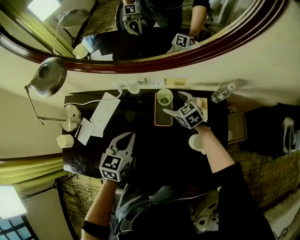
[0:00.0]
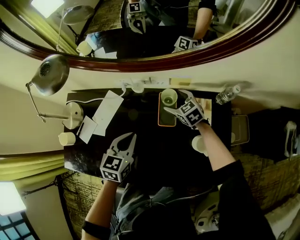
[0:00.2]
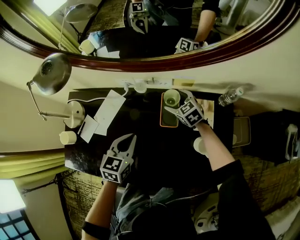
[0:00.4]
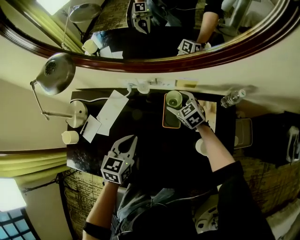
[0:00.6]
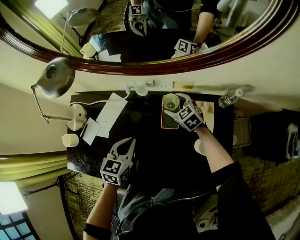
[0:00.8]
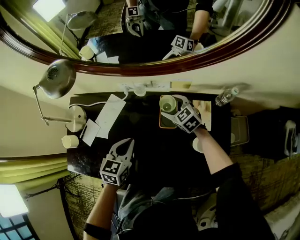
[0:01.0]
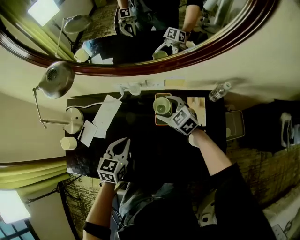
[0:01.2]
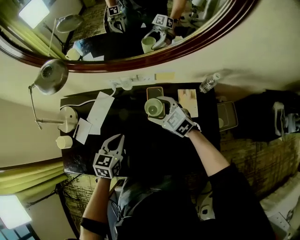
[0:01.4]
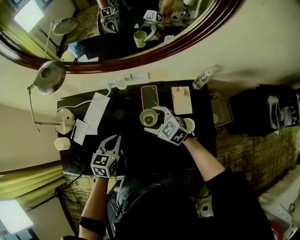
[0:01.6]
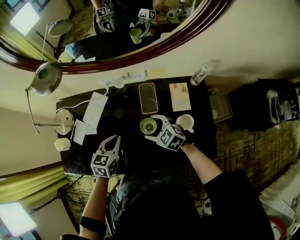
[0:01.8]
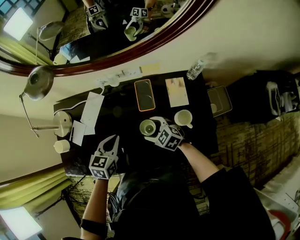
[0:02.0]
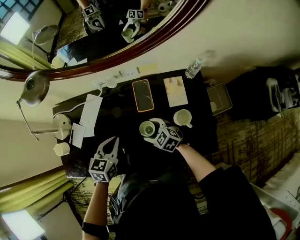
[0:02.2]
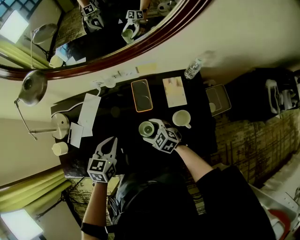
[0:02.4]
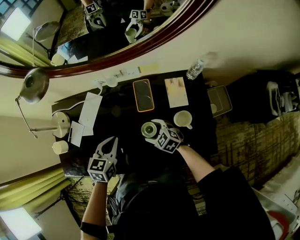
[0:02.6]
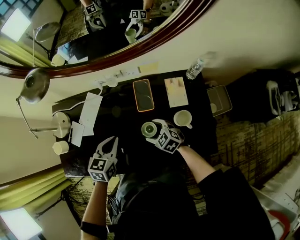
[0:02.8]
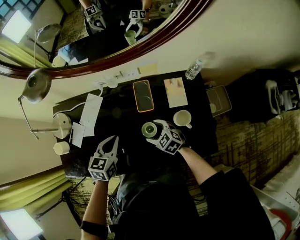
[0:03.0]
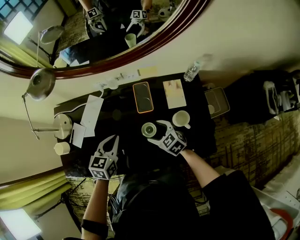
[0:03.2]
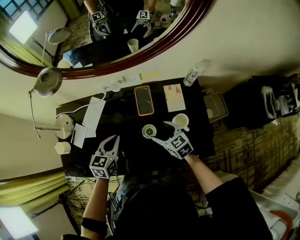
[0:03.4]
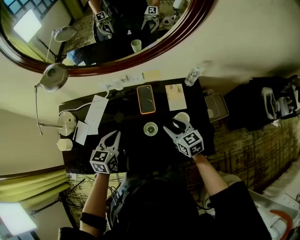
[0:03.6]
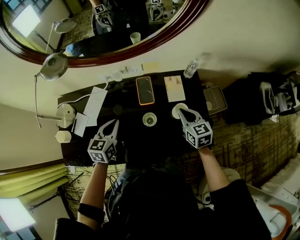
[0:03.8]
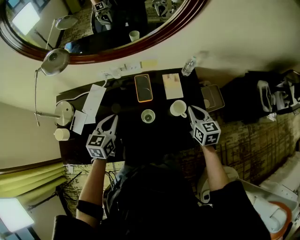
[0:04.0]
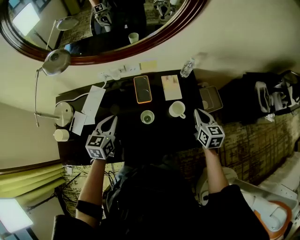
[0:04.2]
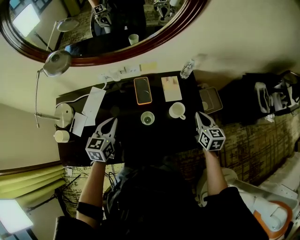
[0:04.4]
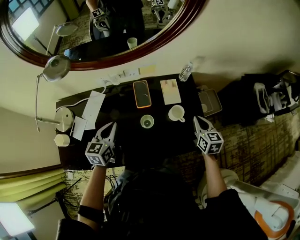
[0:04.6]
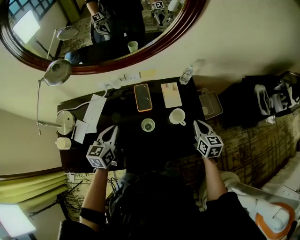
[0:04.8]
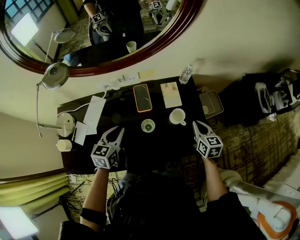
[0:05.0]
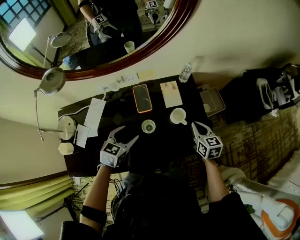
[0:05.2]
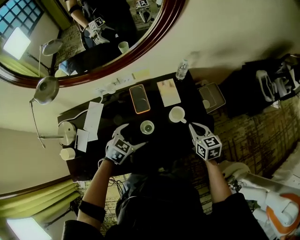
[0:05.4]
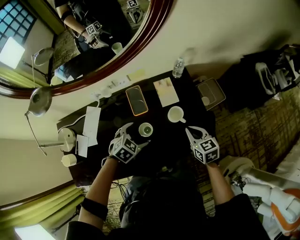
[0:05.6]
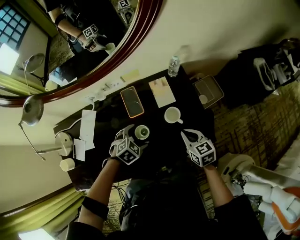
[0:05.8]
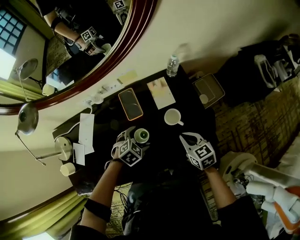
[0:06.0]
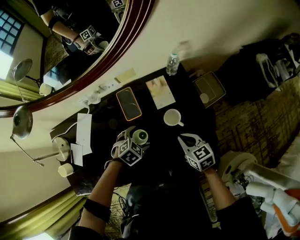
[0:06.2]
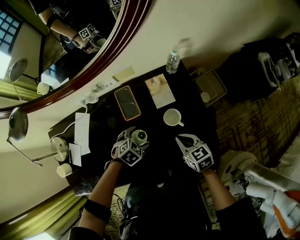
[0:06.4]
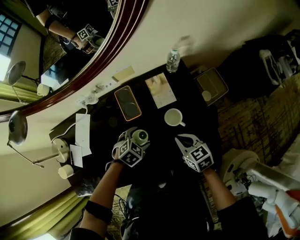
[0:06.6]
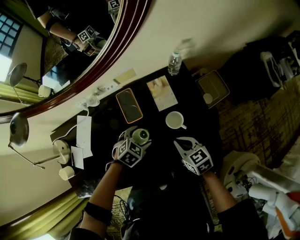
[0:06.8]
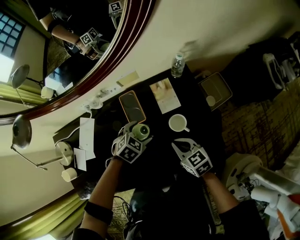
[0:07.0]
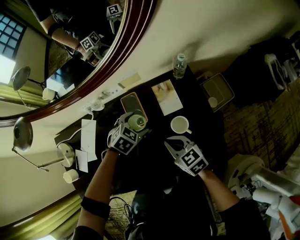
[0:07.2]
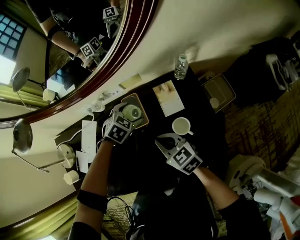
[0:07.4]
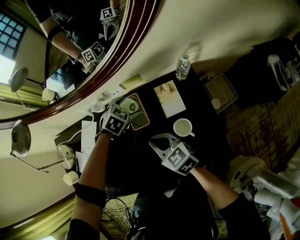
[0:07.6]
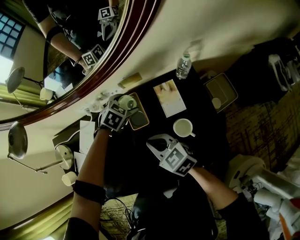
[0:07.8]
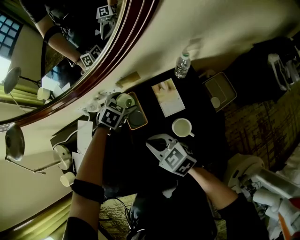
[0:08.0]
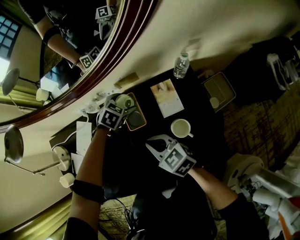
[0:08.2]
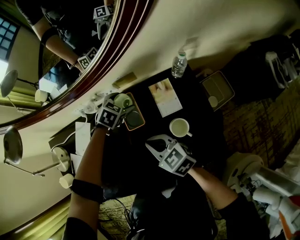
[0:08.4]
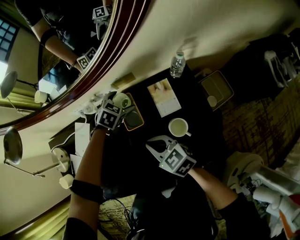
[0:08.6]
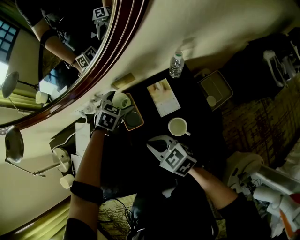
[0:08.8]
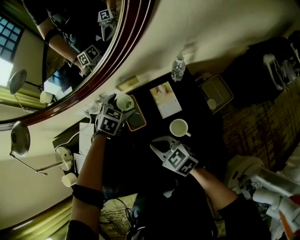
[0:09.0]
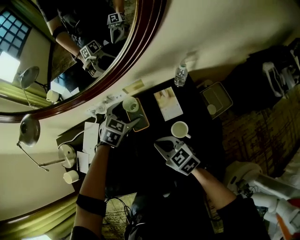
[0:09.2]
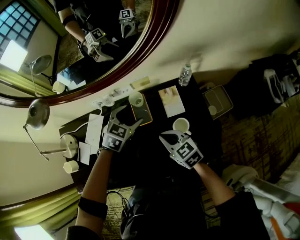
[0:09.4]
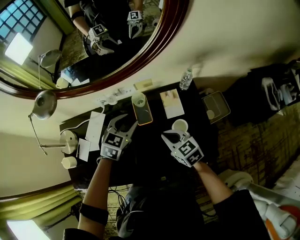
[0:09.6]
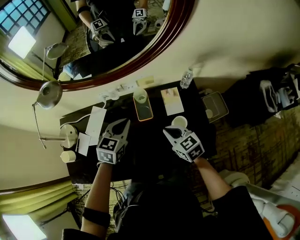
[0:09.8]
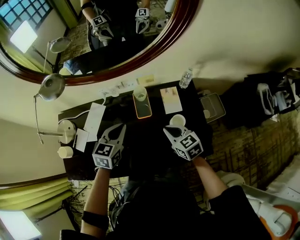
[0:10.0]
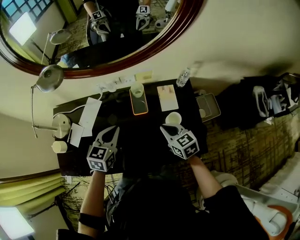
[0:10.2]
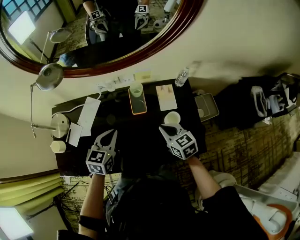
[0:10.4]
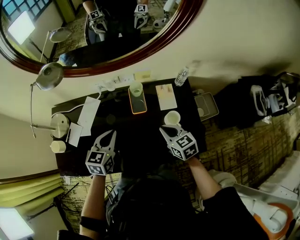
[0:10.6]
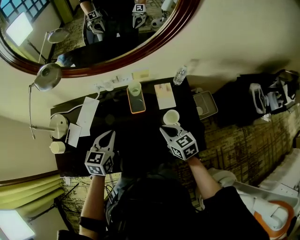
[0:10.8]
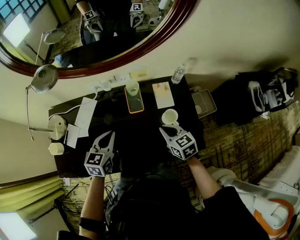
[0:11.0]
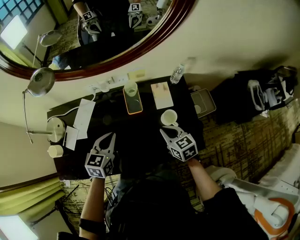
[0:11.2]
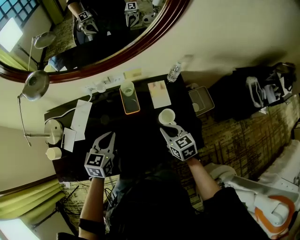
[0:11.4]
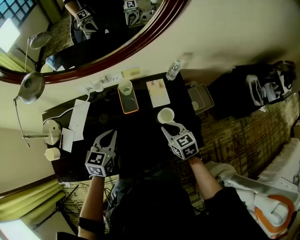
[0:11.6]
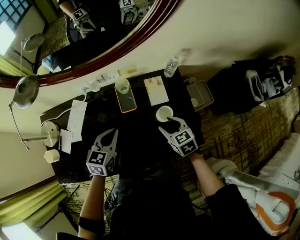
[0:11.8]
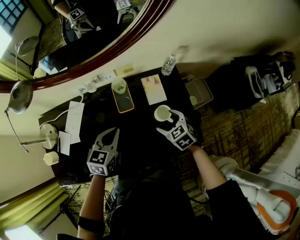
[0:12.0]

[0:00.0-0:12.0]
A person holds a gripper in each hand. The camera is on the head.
0:00.0 to 0:01.6: The right gripper travels backward, to the left and upward by some 20 cm. Meanwhile the left gripper moves roughly 5 cm.
0:01.6 to 0:03.0: The right gripper heads downward and backward, covering about 15 cm.
0:03.0 to 0:04.4: The left gripper moves upward, some 5 cm. Meanwhile the right gripper ends up roughly 30 cm from where it was, rotates approximately 60 degrees, and closes its fingers.
0:04.4 to 0:06.0: The left gripper shifts roughly 25 cm downward and to the right, angles its fingers downward, by some 40 degrees, and opens up; the right gripper goes approximately 10 cm downward and backward.
0:06.0 to 0:07.6: The right gripper goes some 15 cm to the left, and changes its angle by some 20 degrees; the left gripper travels forward by approximately 20 cm.
0:07.6 to 0:09.0: The grippers move only a little.
0:09.0 to 0:10.4: The right gripper shifts by some 5 cm; the left gripper is displaced backward, to the left and upward by about 30 cm, rotates about 40 degrees, and closes its fingers.
0:10.4 to 0:12.0: The left gripper is displaced to the right by some 10 cm; the right gripper is displaced to the right and downward by some 10 cm, rotates roughly 20 degrees, and opens up.

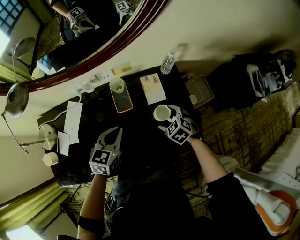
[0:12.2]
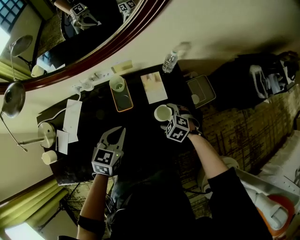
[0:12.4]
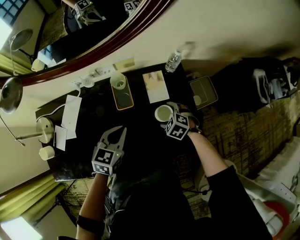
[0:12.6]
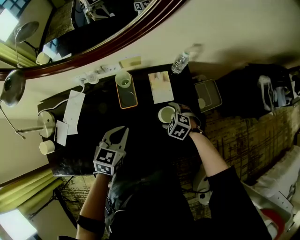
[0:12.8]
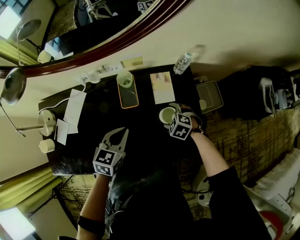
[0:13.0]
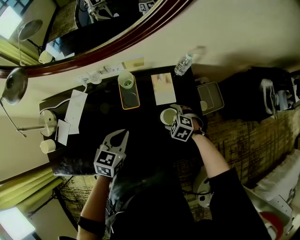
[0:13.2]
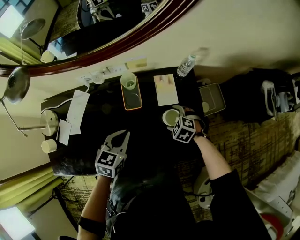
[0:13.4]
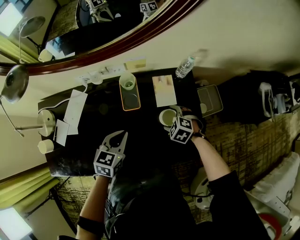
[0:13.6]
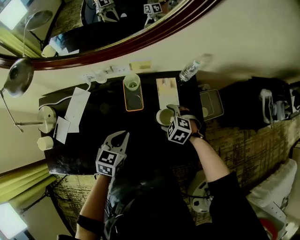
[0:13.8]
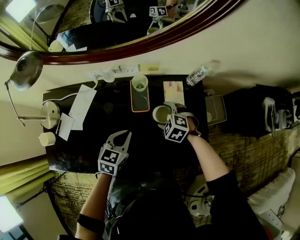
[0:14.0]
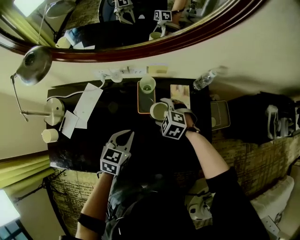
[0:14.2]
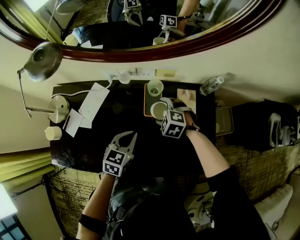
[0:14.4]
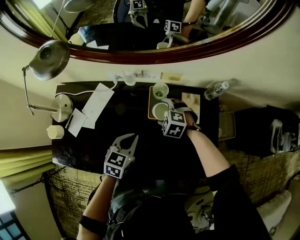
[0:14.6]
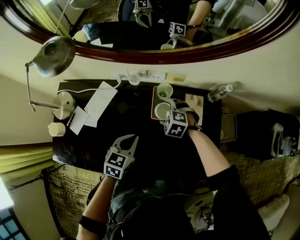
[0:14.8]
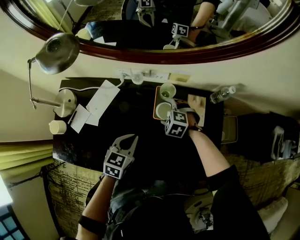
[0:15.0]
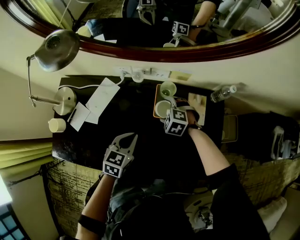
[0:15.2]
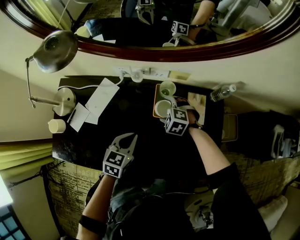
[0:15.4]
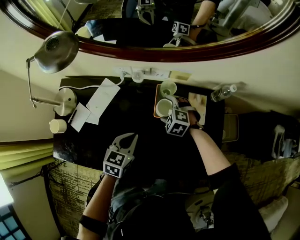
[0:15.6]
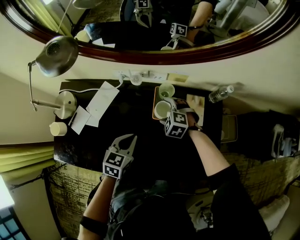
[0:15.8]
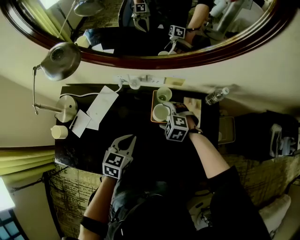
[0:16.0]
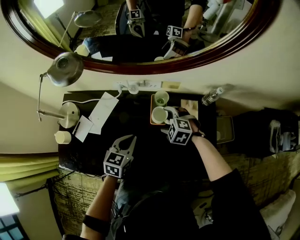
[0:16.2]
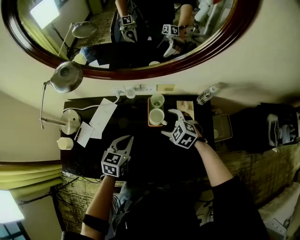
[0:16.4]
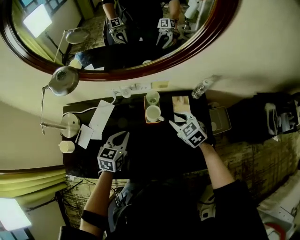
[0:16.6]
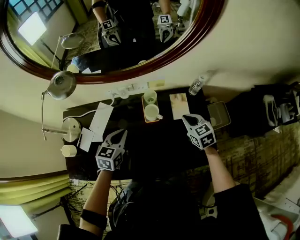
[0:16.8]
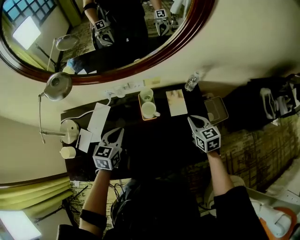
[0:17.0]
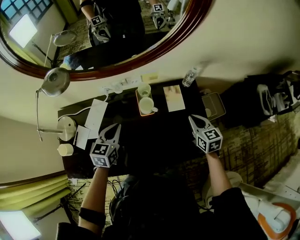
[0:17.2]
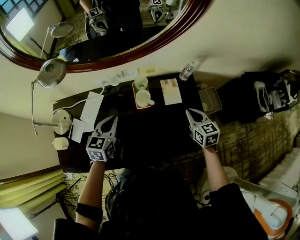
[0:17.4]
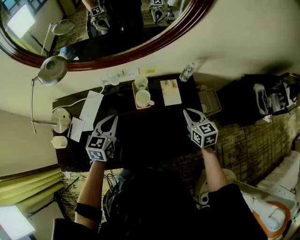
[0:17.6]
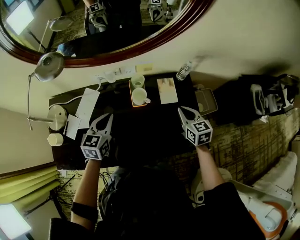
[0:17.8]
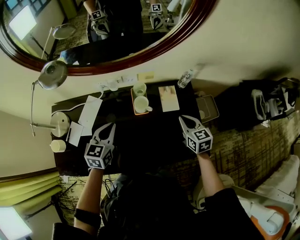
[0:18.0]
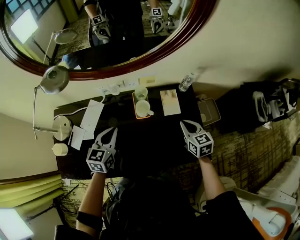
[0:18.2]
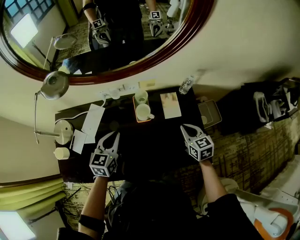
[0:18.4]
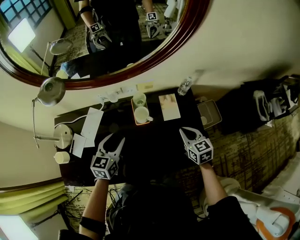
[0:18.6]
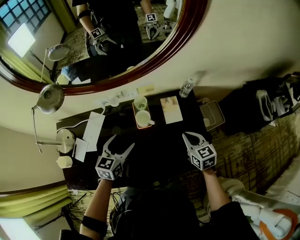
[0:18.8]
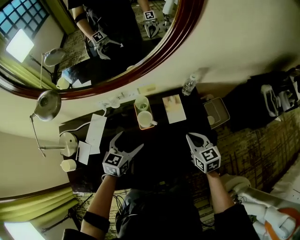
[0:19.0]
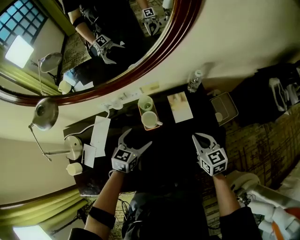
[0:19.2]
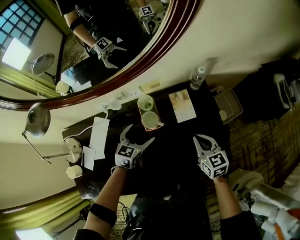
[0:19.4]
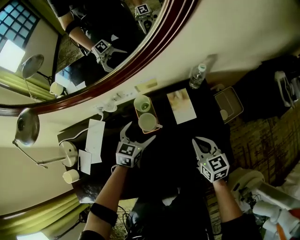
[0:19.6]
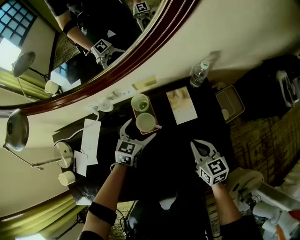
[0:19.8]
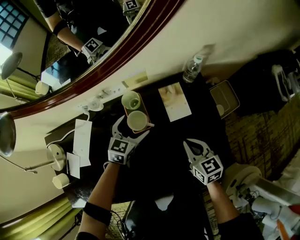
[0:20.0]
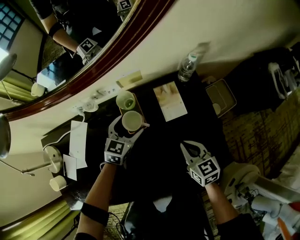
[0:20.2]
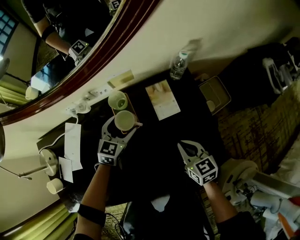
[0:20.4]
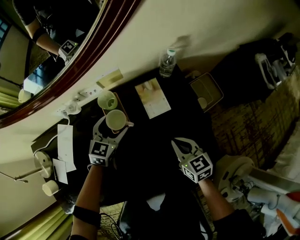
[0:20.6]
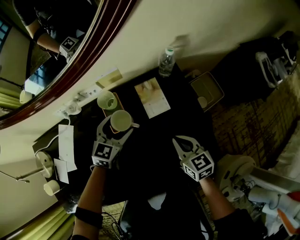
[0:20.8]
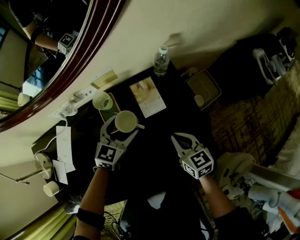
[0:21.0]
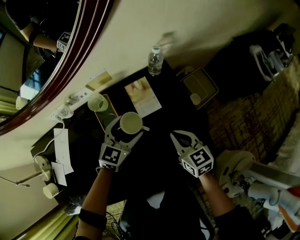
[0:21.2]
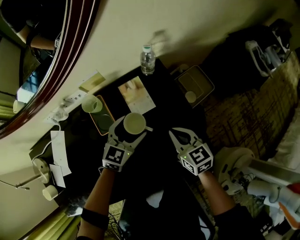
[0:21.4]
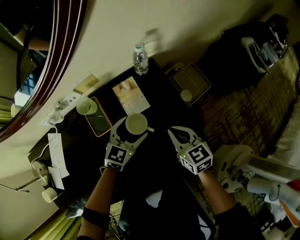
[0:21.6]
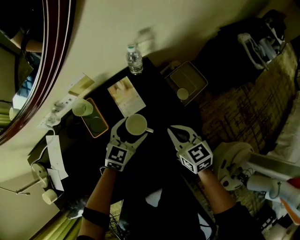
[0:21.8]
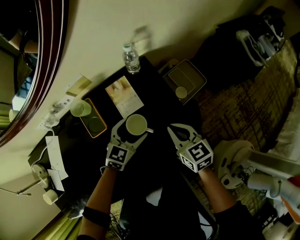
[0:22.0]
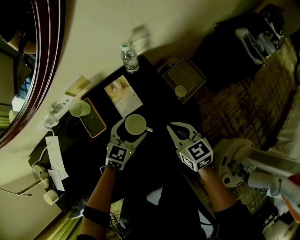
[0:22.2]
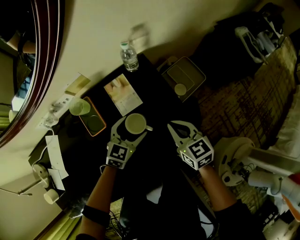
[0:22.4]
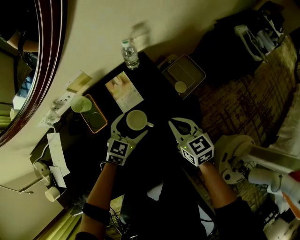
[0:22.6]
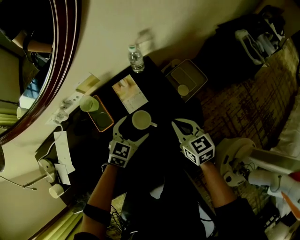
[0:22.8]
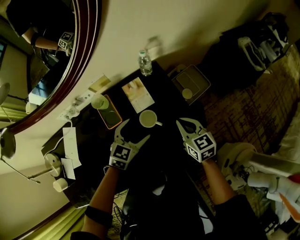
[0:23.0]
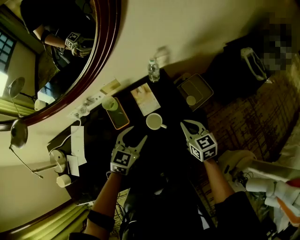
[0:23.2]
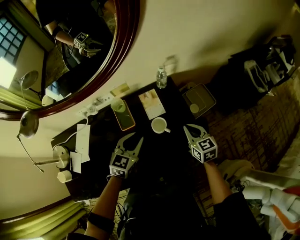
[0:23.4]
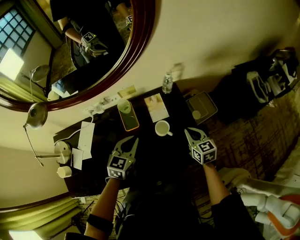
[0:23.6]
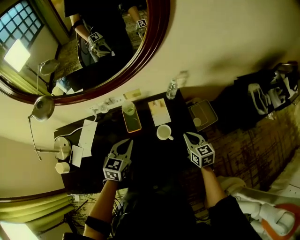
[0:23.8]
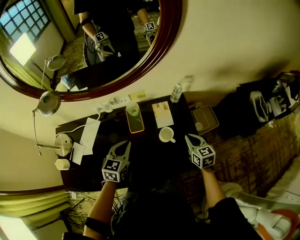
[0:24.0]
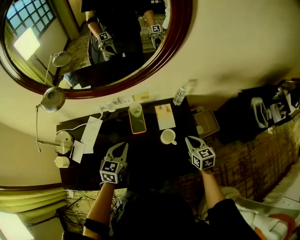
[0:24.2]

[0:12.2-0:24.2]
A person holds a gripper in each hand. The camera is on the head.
0:12.2 to 0:13.8: The left gripper is displaced downward by roughly 5 cm. Meanwhile the right gripper changes place by roughly 5 cm, and swivels roughly 20 degrees.
0:13.8 to 0:15.2: The right gripper is displaced to the left and forward by some 20 cm, and changes its angle by roughly 20 degrees. The left gripper shifts roughly 10 cm to the left.
0:15.2 to 0:16.6: The left gripper shifts approximately 5 cm upward. Meanwhile the right gripper goes roughly 20 cm upward, to the right and backward, swivels approximately 40 degrees, and closes its fingers.
0:16.6 to 0:18.2: The right gripper travels to the right and backward by some 10 cm, and changes its angle by approximately 30 degrees.
0:18.2 to 0:19.8: The left gripper heads downward, forward and to the right, covering approximately 25 cm, turns by some 20 degrees, and opens; the right gripper heads downward, covering roughly 10 cm.
0:19.8 to 0:21.2: The right gripper heads to the right, covering about 5 cm. The left gripper moves to the right, approximately 10 cm.
0:21.2 to 0:22.6: Both grippers travel together to the right, about 10 cm.
0:22.6 to 0:24.2: The left gripper heads to the left, upward and backward, covering about 30 cm, changes its angle by about 40 degrees, and closes up. Meanwhile the right gripper goes roughly 10 cm upward.
